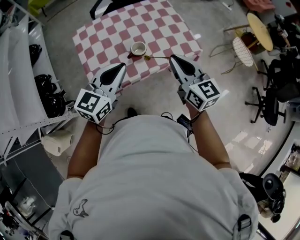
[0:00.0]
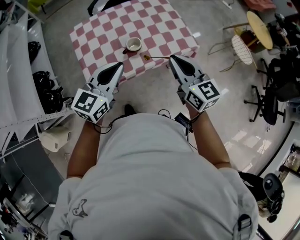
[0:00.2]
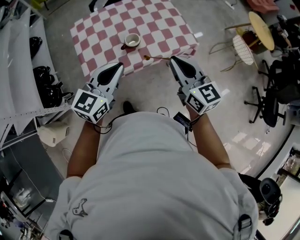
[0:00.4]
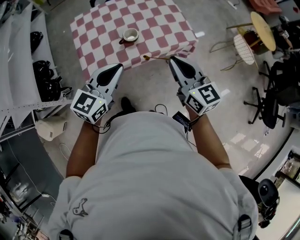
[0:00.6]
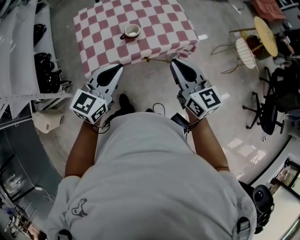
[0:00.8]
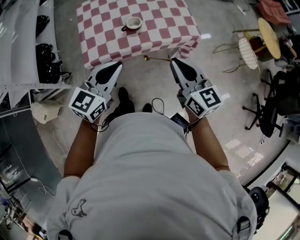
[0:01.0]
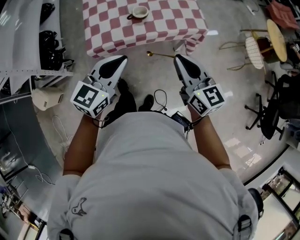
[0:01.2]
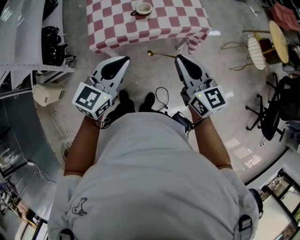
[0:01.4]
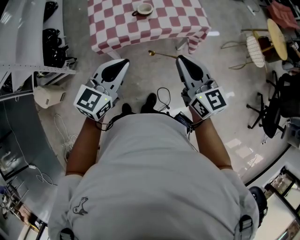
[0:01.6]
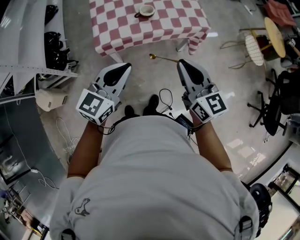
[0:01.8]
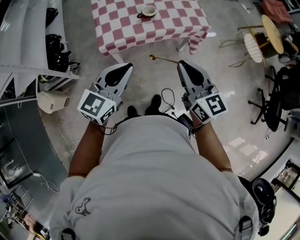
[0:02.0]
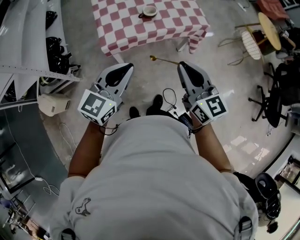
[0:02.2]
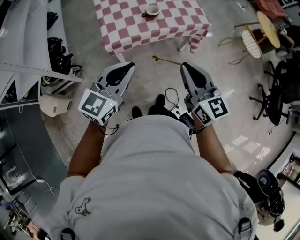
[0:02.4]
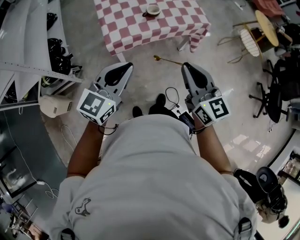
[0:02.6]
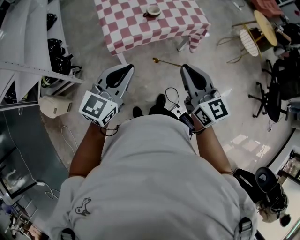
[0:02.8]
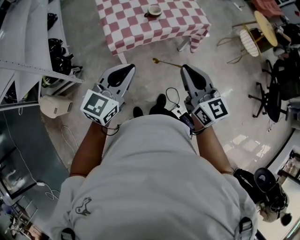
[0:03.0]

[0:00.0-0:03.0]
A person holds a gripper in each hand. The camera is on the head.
0:00.0 to 0:01.6: Both grippers move backward, approximately 20 cm.
0:01.6 to 0:03.0: The left gripper is displaced to the left and backward by approximately 15 cm. The right gripper moves backward and to the left, approximately 15 cm.

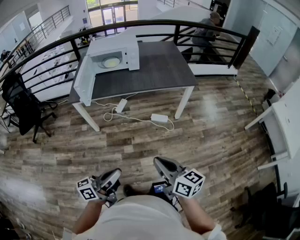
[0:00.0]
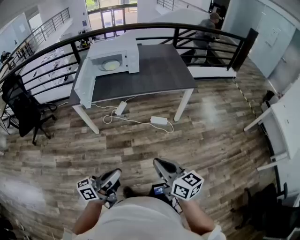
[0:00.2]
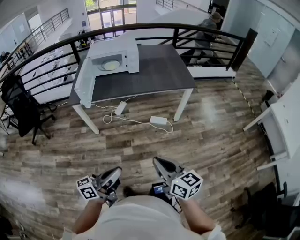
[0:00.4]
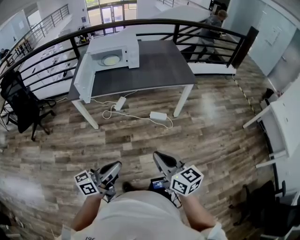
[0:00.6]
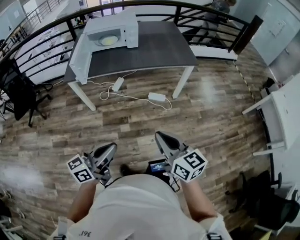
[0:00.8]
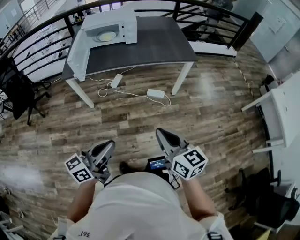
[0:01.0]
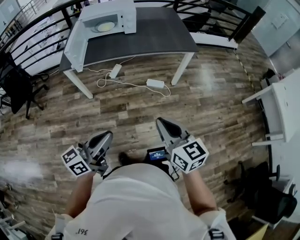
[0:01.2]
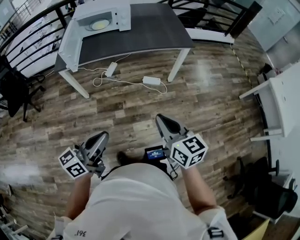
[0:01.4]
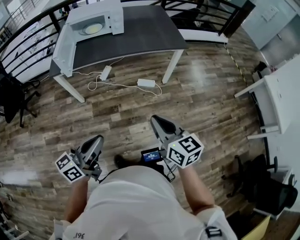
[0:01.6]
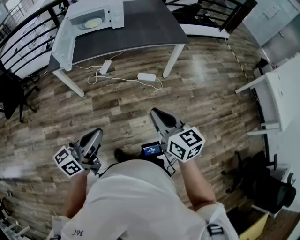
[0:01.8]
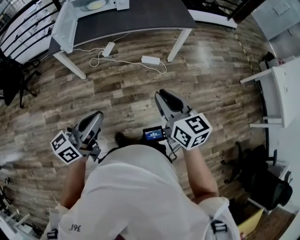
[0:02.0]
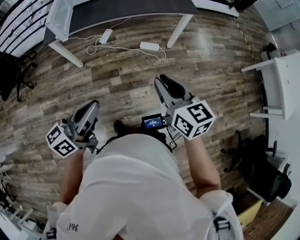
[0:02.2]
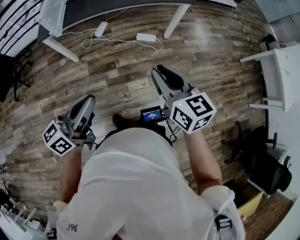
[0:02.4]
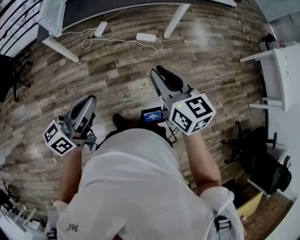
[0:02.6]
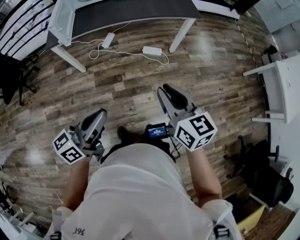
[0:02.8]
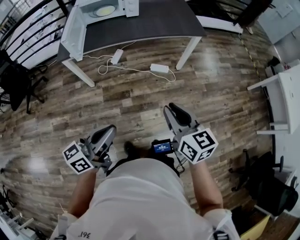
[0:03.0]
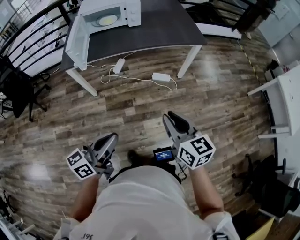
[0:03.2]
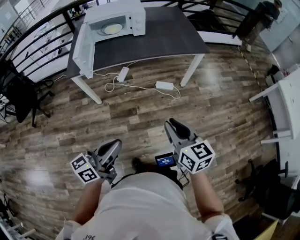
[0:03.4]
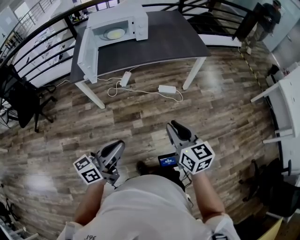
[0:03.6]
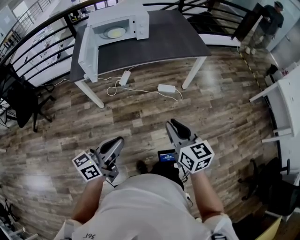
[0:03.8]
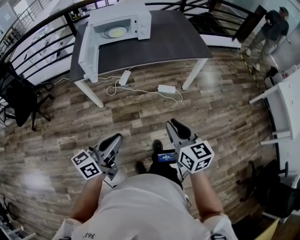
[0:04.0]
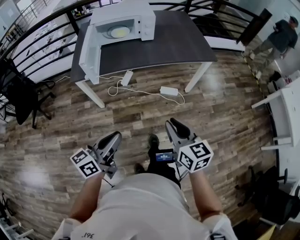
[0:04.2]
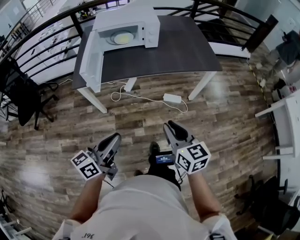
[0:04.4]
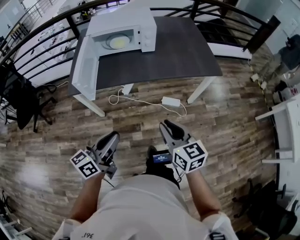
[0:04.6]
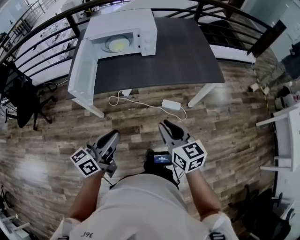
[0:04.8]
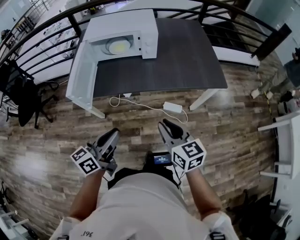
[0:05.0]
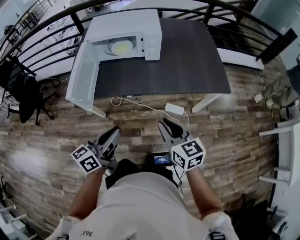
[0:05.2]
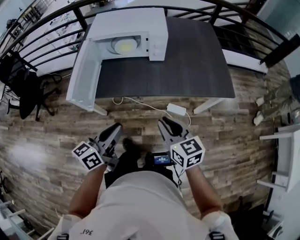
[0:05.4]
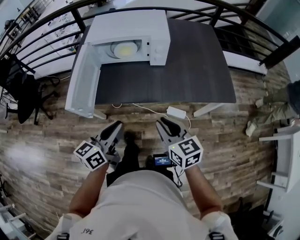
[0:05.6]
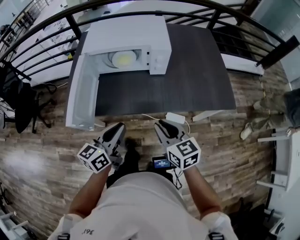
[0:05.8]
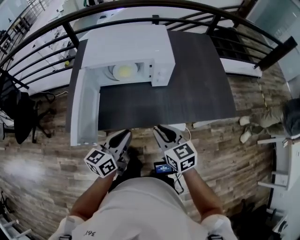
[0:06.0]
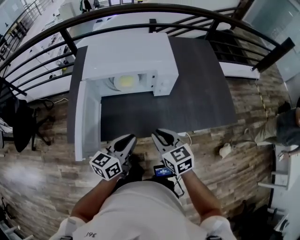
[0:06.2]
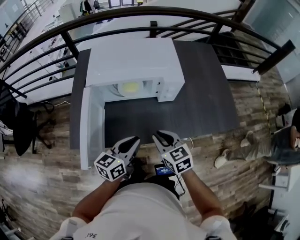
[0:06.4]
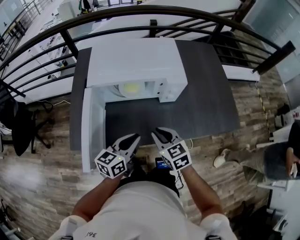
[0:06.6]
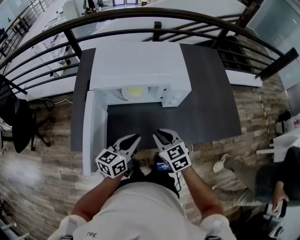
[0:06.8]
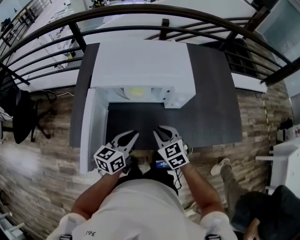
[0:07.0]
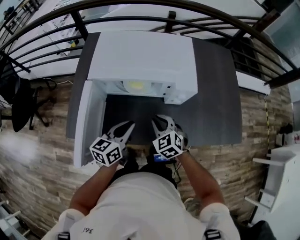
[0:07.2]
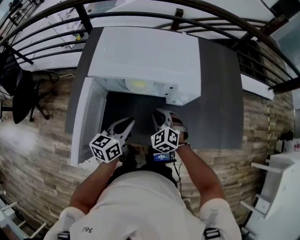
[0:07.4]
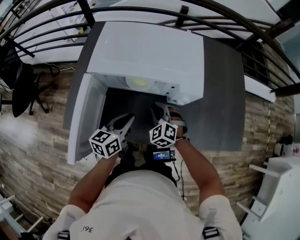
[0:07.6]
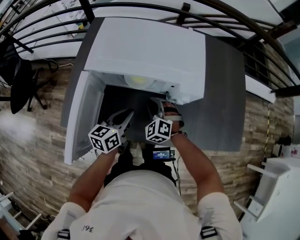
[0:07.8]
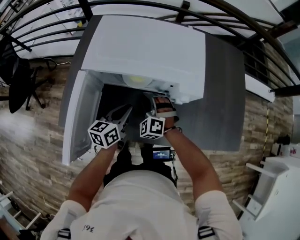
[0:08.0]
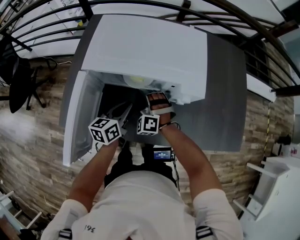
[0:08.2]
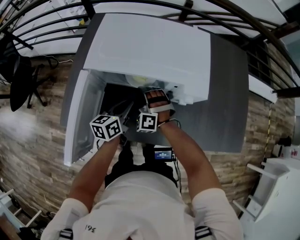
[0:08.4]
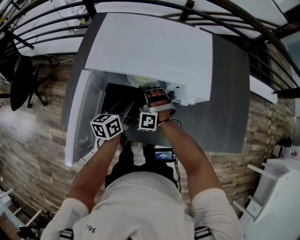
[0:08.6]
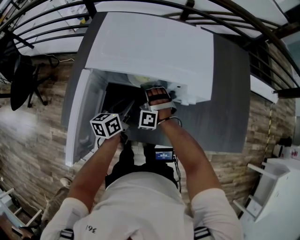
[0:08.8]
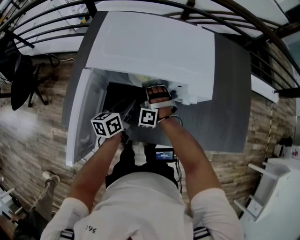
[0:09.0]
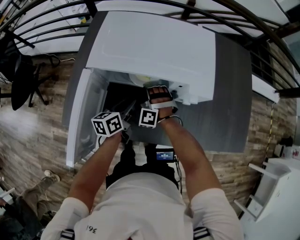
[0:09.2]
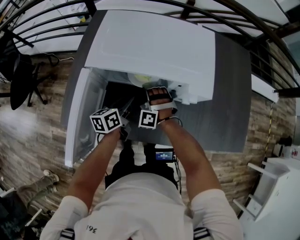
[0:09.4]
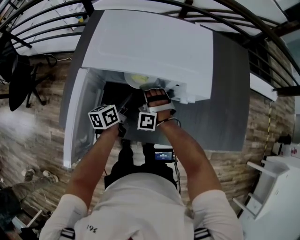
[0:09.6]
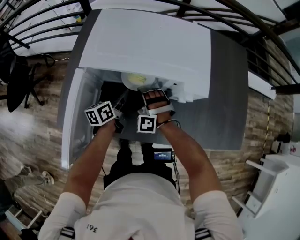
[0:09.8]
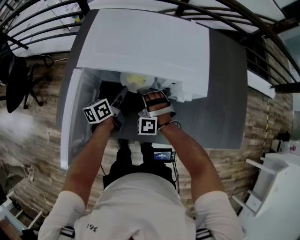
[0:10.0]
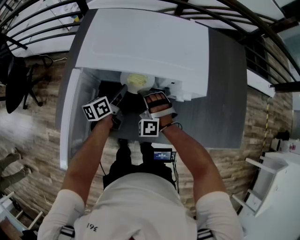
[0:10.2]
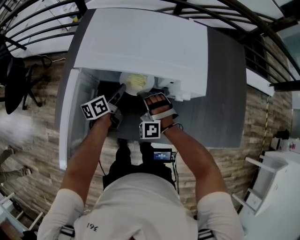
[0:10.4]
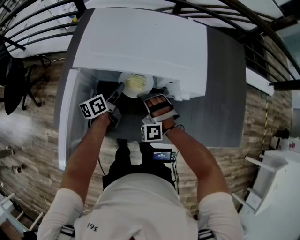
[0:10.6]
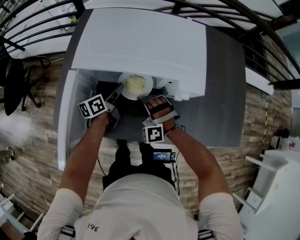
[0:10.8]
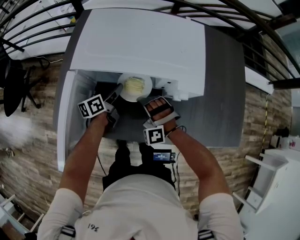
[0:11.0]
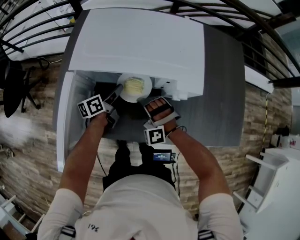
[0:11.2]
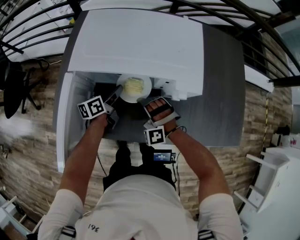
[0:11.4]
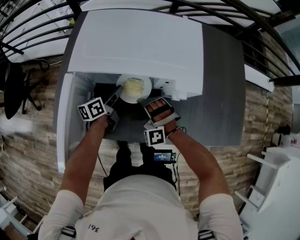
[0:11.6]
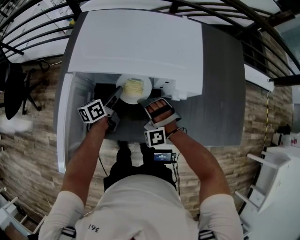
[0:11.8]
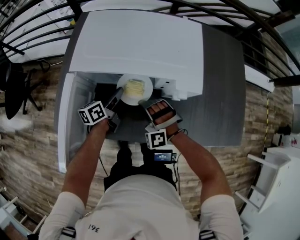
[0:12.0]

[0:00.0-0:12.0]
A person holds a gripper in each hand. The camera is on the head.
0:01.6 to 0:03.0: The grippers move only a little.
0:03.0 to 0:04.4: The right gripper shifts some 20 cm to the left and forward, while the left gripper heads forward and to the left, covering about 20 cm.
0:04.4 to 0:06.0: The pair of grippers is taken forward, roughly 40 cm.
0:06.0 to 0:07.6: The left gripper heads forward, covering some 20 cm; the right gripper travels forward and downward by approximately 30 cm, and rotates around the line of its fingers by about 50 degrees, counterclockwise from behind.
0:07.6 to 0:09.0: The right gripper shifts roughly 10 cm to the left and forward, and rotates about 30 degrees, while the left gripper heads forward and downward, covering roughly 10 cm.
0:09.0 to 0:10.4: The right gripper shifts approximately 5 cm backward, while the left gripper goes about 5 cm forward.
0:10.4 to 0:12.0: The grippers make only small movements.

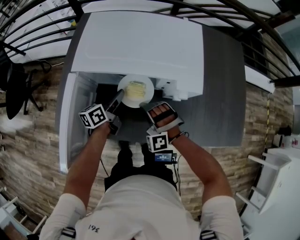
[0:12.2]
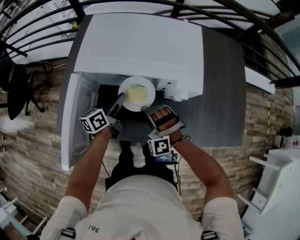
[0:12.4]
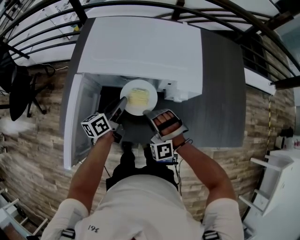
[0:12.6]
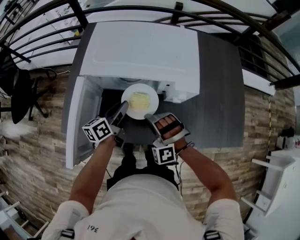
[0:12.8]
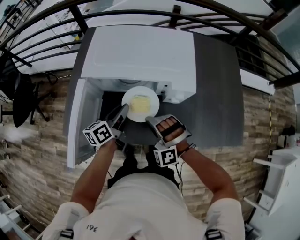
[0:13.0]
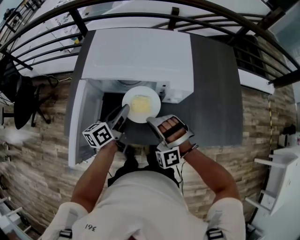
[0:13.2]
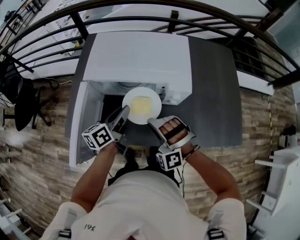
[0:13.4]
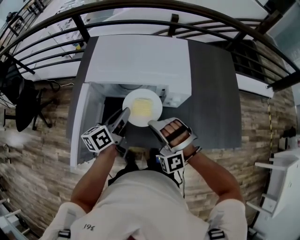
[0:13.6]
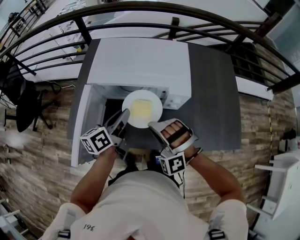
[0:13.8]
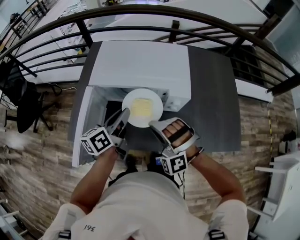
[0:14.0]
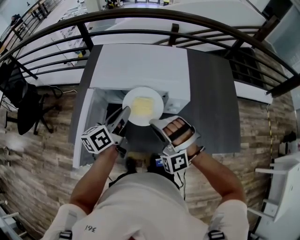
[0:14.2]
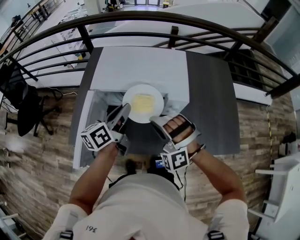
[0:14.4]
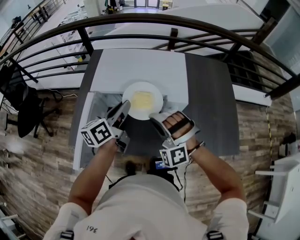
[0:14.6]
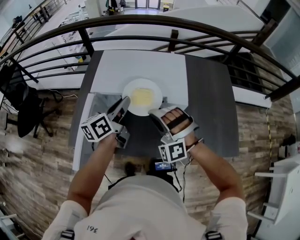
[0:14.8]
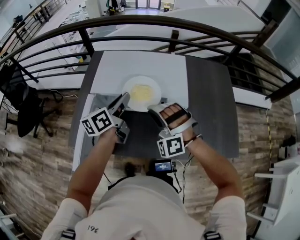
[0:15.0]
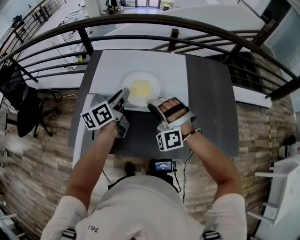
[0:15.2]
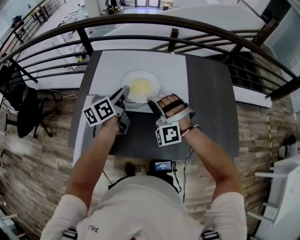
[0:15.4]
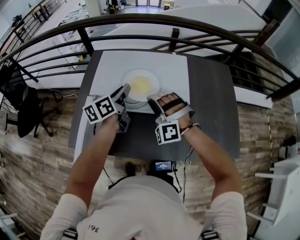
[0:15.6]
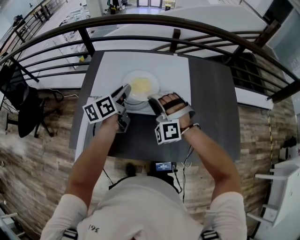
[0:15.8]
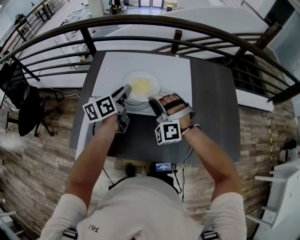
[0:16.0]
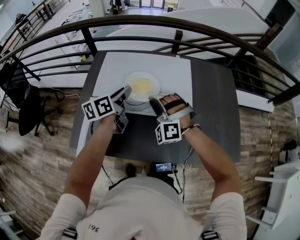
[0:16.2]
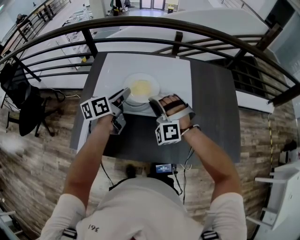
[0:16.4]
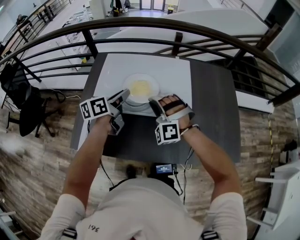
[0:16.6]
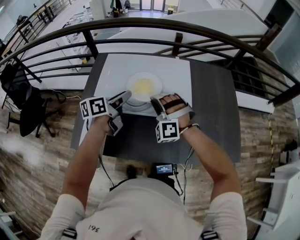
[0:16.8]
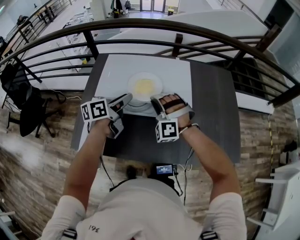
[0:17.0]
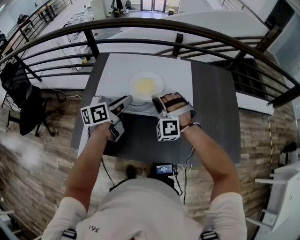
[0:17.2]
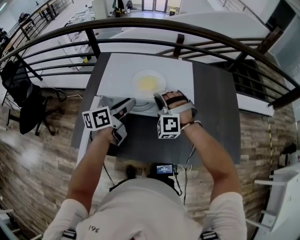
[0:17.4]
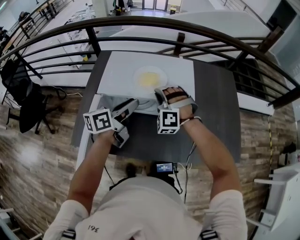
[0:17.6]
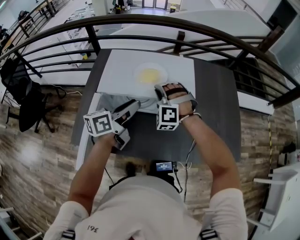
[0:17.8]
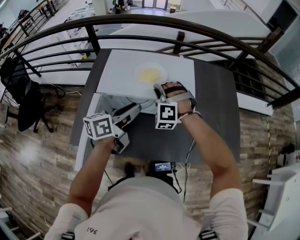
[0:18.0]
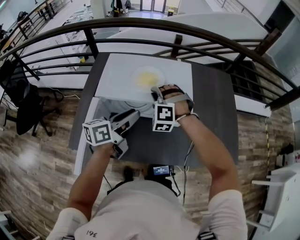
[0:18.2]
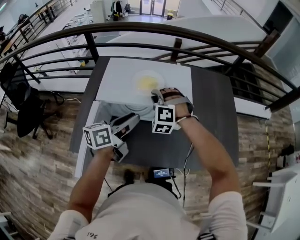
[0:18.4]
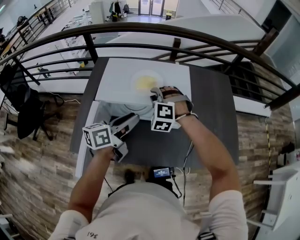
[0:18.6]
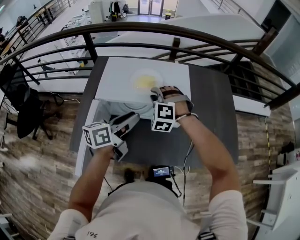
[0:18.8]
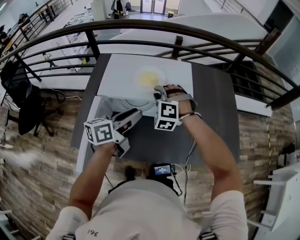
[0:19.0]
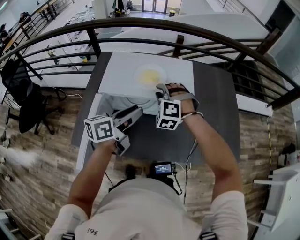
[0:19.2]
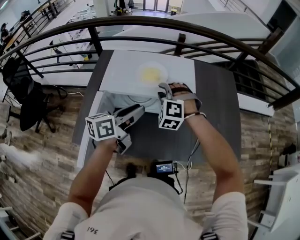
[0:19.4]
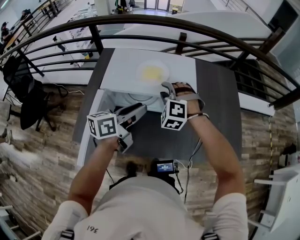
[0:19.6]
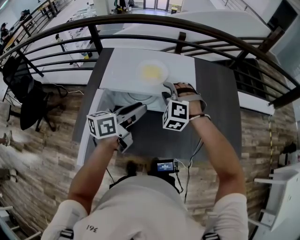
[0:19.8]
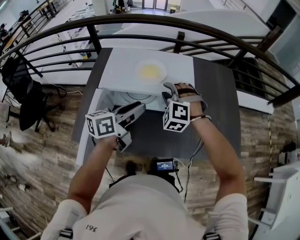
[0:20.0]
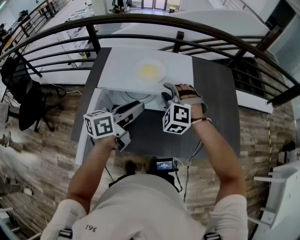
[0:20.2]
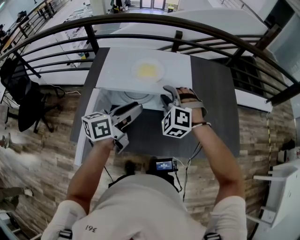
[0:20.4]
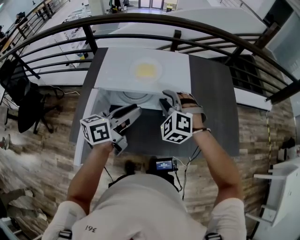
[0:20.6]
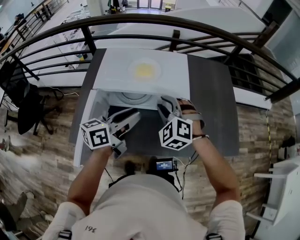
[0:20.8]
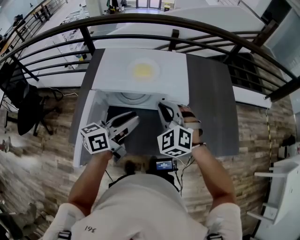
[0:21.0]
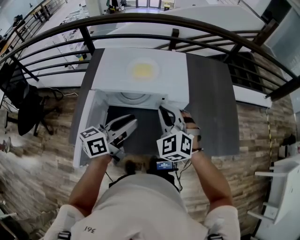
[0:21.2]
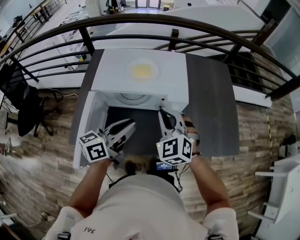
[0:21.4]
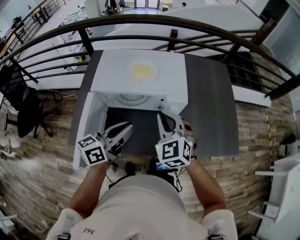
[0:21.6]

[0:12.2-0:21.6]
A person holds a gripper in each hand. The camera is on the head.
0:12.2 to 0:13.8: The two grippers go about 20 cm upward and backward.
0:13.8 to 0:15.4: The grippers both shift forward by about 15 cm.
0:15.4 to 0:17.0: There are only small adjustments of the grippers.
0:17.0 to 0:18.4: The left gripper travels backward by about 5 cm.
0:18.4 to 0:20.0: The right gripper opens up.
0:20.0 to 0:21.6: Both grippers move backward, approximately 10 cm. The right gripper rotates around the line of its fingers by approximately 40 degrees, clockwise from behind, and closes up.
